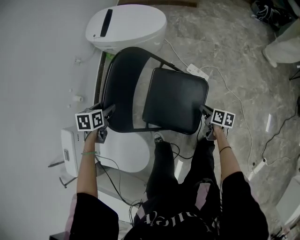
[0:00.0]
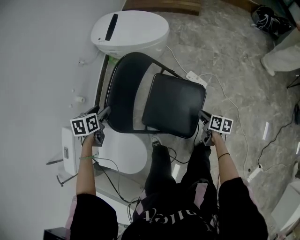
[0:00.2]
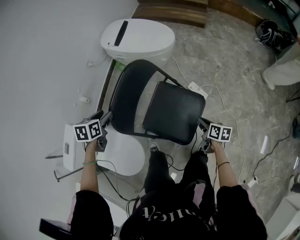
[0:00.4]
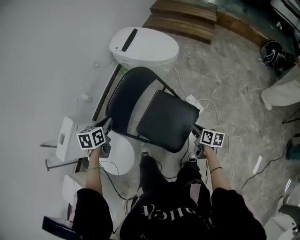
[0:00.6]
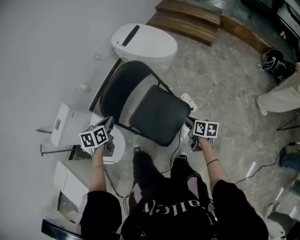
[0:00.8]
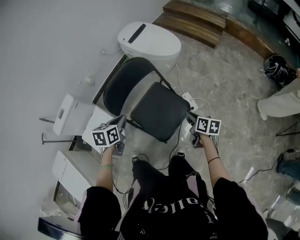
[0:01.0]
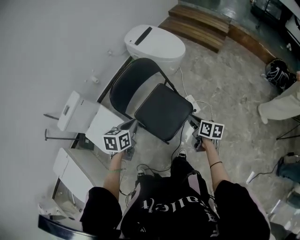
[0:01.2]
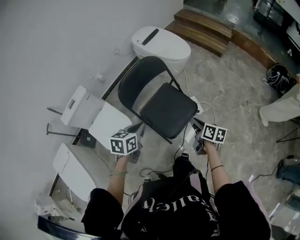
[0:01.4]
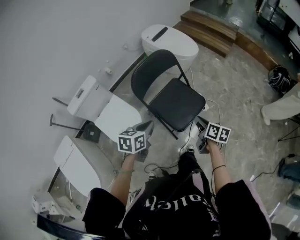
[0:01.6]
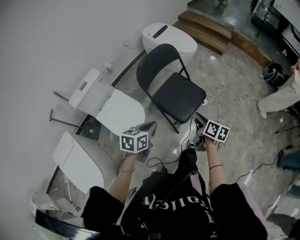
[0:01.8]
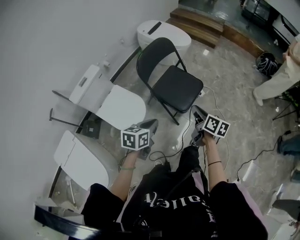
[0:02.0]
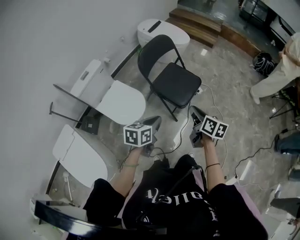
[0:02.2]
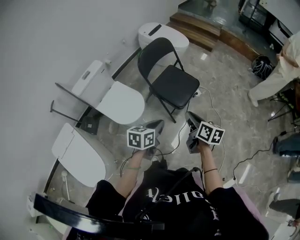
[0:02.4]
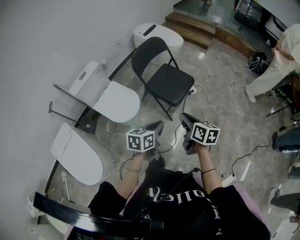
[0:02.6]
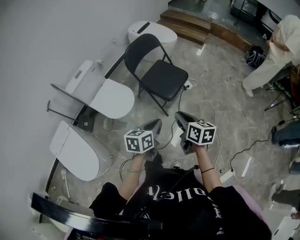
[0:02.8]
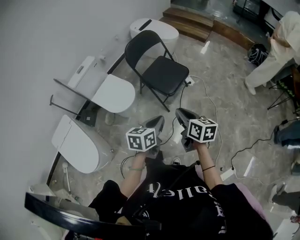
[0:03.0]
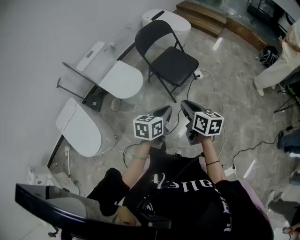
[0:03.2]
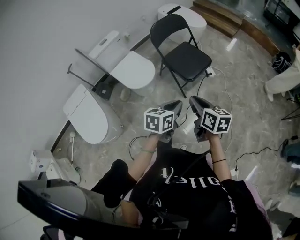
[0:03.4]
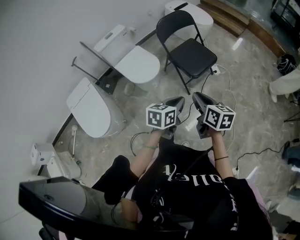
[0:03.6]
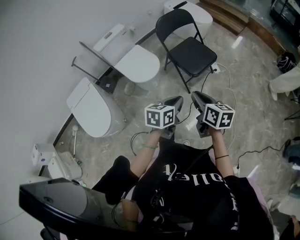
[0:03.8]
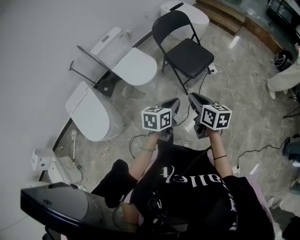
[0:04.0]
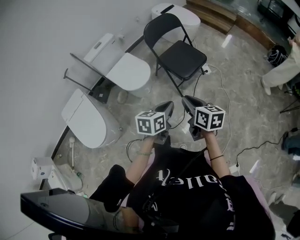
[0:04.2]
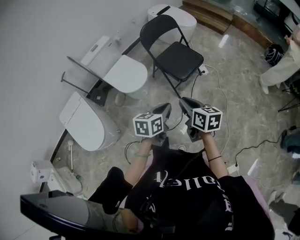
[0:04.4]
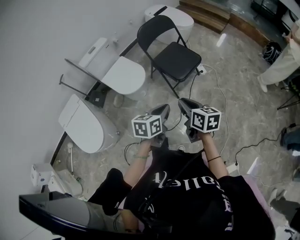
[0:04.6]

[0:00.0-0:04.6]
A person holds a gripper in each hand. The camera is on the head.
0:00.0 to 0:01.6: The left gripper shifts approximately 40 cm backward and upward, changes its angle by roughly 30 degrees, and closes its fingers. The right gripper travels upward and backward by approximately 30 cm, and changes its angle by some 30 degrees.
0:01.6 to 0:03.0: Both grippers move backward, about 35 cm.
0:03.0 to 0:04.6: There are only small adjustments of the grippers.

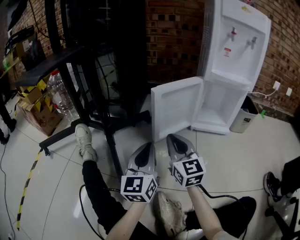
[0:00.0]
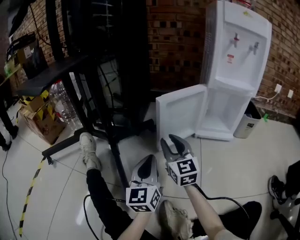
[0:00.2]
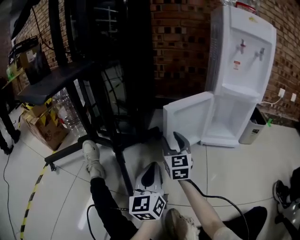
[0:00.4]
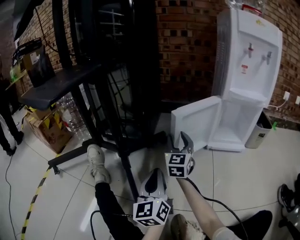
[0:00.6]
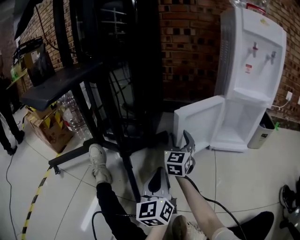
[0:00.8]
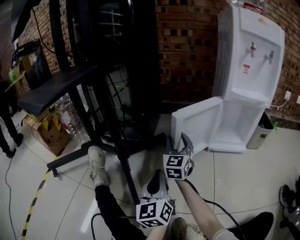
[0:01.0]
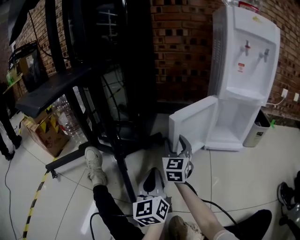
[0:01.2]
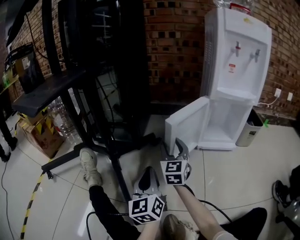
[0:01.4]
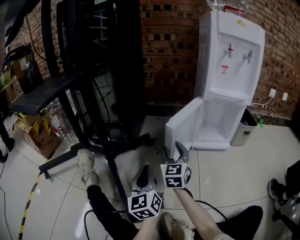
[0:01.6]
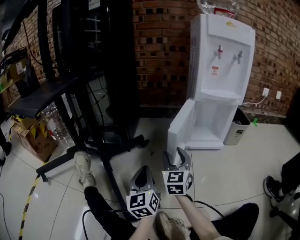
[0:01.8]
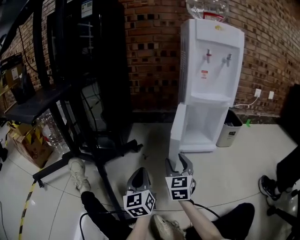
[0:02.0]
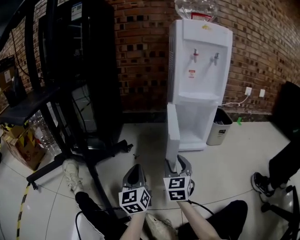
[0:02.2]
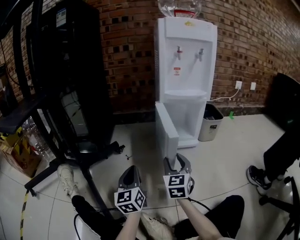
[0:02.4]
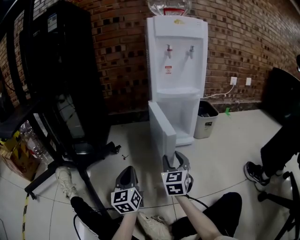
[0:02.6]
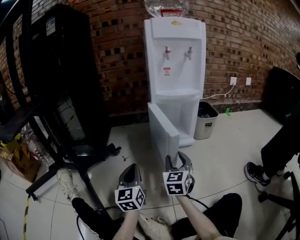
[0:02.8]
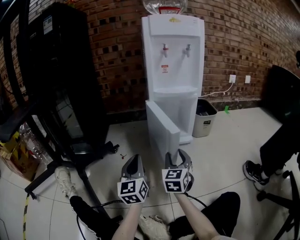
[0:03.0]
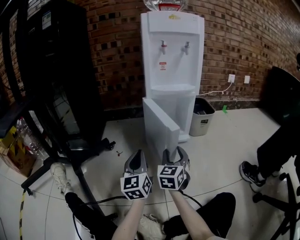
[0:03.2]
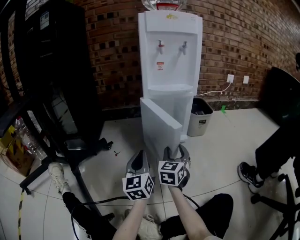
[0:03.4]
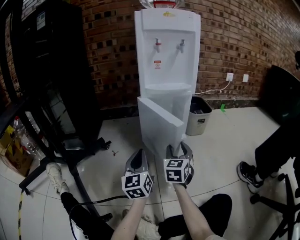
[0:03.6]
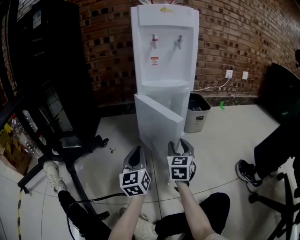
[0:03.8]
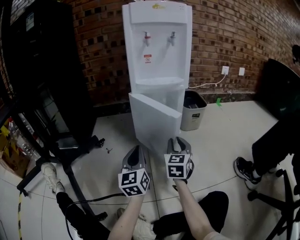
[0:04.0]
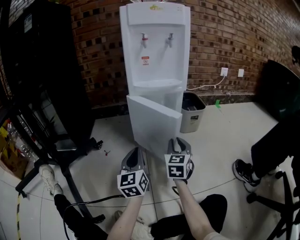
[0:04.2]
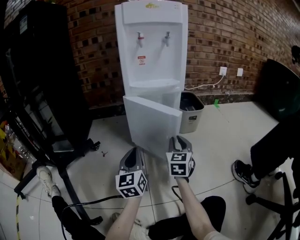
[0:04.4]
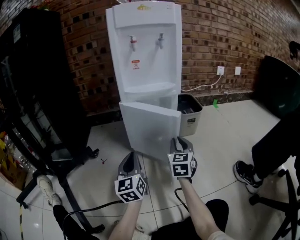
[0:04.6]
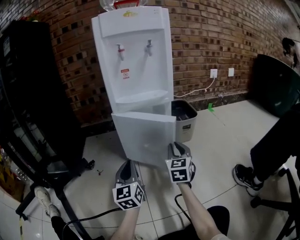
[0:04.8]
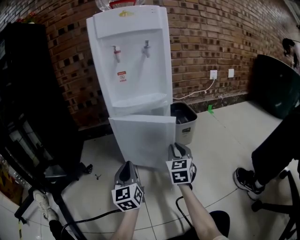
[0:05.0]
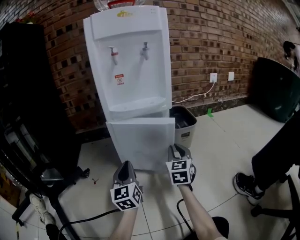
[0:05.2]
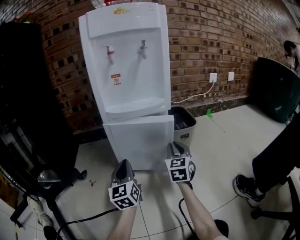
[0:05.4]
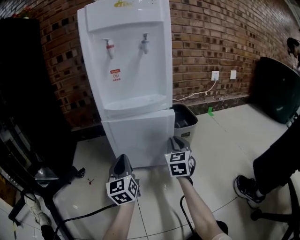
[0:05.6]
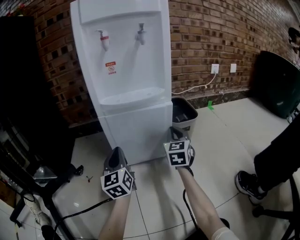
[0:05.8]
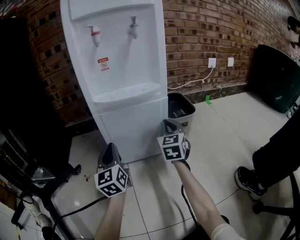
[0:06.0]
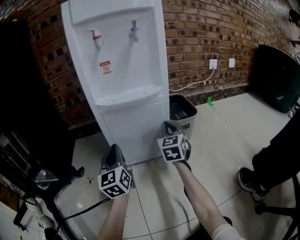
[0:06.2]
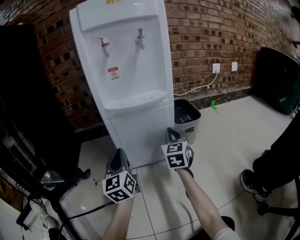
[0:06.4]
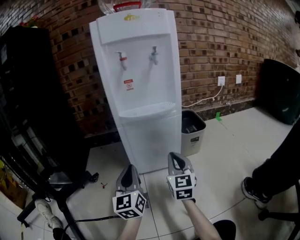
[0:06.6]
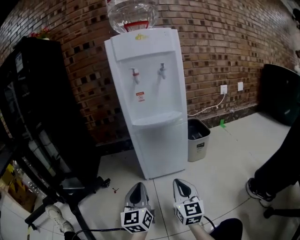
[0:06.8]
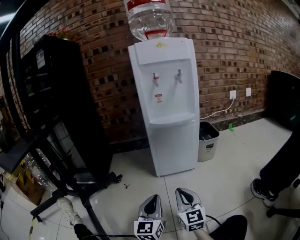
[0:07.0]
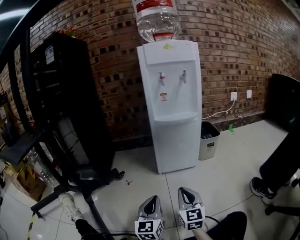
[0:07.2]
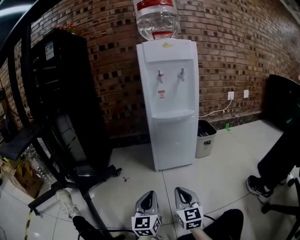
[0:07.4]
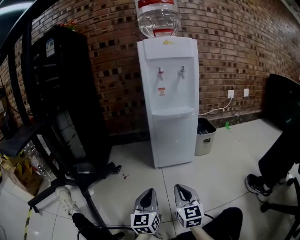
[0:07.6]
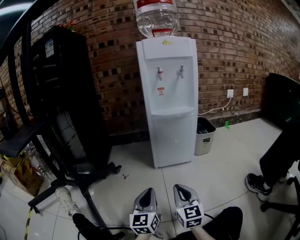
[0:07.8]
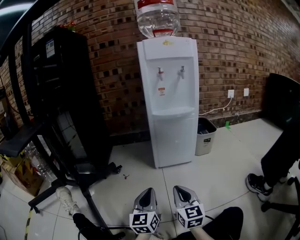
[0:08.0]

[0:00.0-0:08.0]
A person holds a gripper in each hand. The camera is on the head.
0:00.0 to 0:01.6: The right gripper heads forward, covering roughly 10 cm, rotates approximately 20 degrees, and opens its fingers. The left gripper moves roughly 5 cm.
0:01.6 to 0:03.2: Both grippers move to the right, roughly 20 cm. The left gripper swivels some 20 degrees. Meanwhile the right gripper turns by about 30 degrees.
0:03.2 to 0:04.8: The left gripper moves forward and to the right, some 10 cm. The right gripper is displaced to the right and forward by approximately 15 cm, and closes up.
0:04.8 to 0:06.4: Both grippers move forward, roughly 10 cm.
0:06.4 to 0:08.0: The right gripper is displaced backward and to the left by roughly 35 cm, and swivels about 20 degrees; the left gripper heads backward, covering some 25 cm.

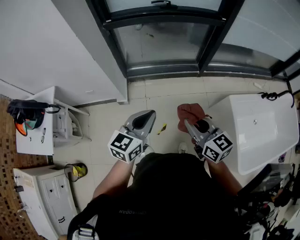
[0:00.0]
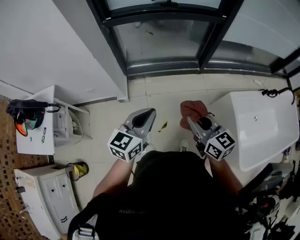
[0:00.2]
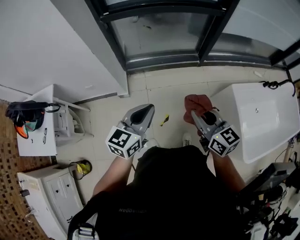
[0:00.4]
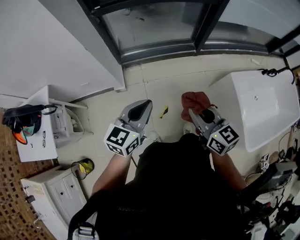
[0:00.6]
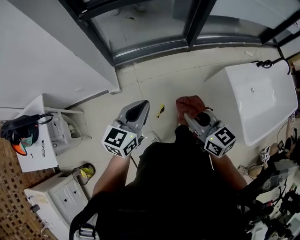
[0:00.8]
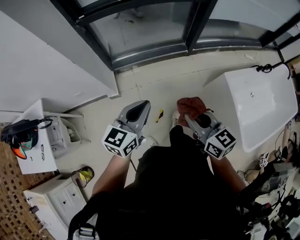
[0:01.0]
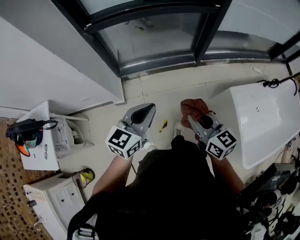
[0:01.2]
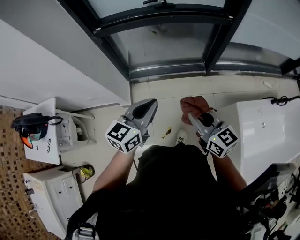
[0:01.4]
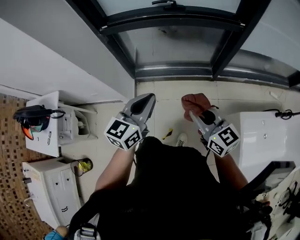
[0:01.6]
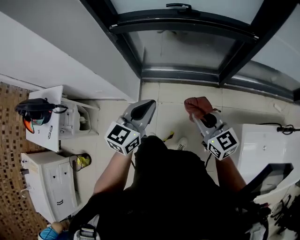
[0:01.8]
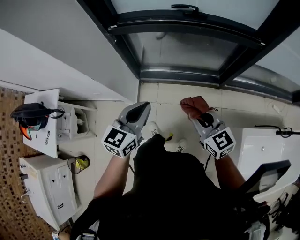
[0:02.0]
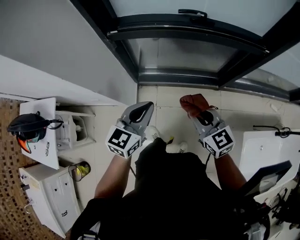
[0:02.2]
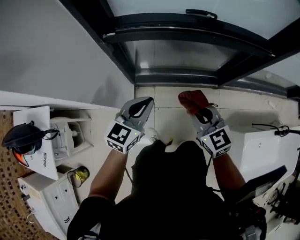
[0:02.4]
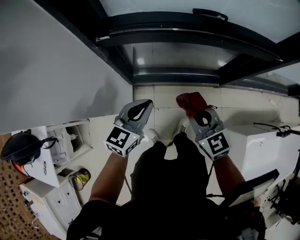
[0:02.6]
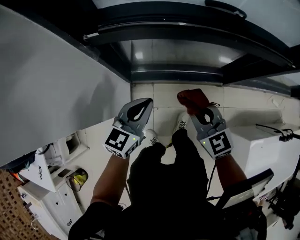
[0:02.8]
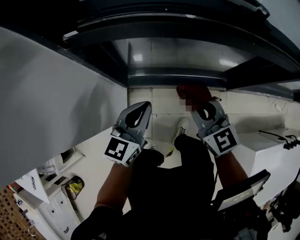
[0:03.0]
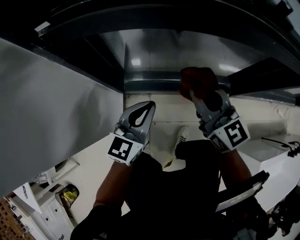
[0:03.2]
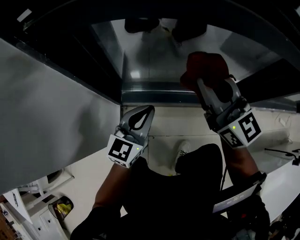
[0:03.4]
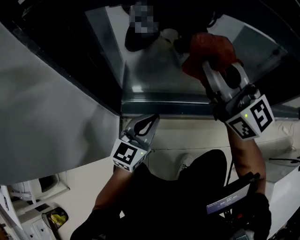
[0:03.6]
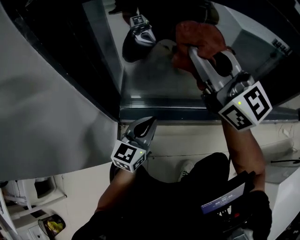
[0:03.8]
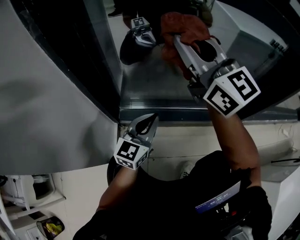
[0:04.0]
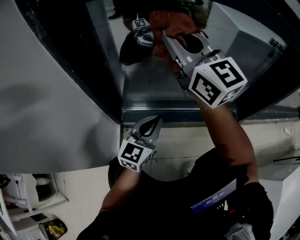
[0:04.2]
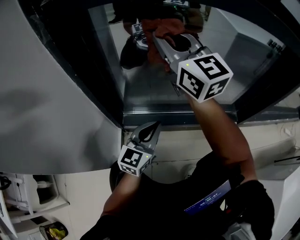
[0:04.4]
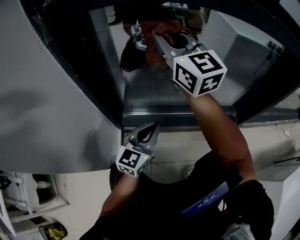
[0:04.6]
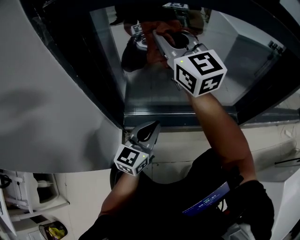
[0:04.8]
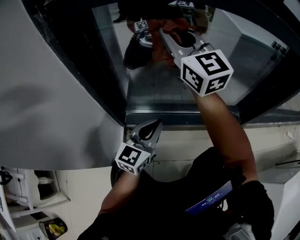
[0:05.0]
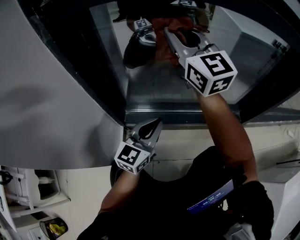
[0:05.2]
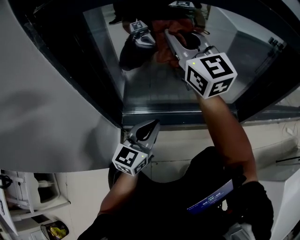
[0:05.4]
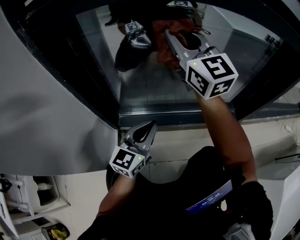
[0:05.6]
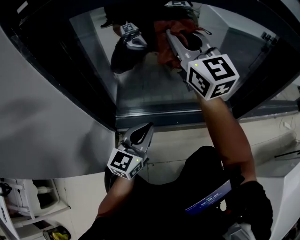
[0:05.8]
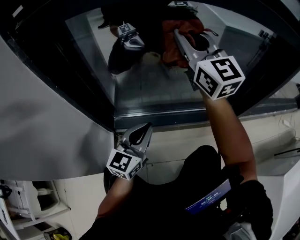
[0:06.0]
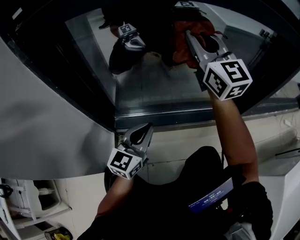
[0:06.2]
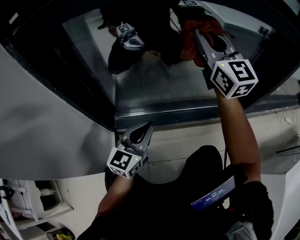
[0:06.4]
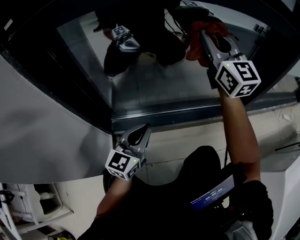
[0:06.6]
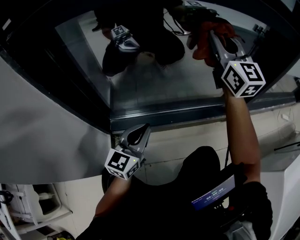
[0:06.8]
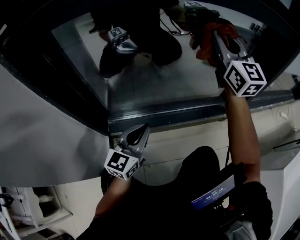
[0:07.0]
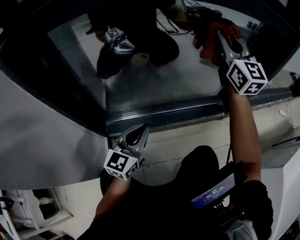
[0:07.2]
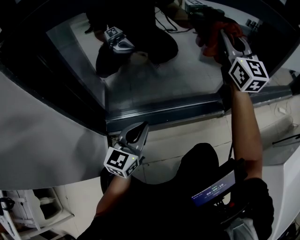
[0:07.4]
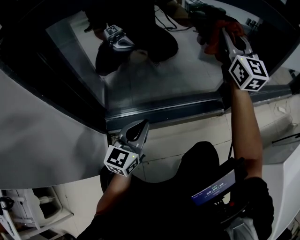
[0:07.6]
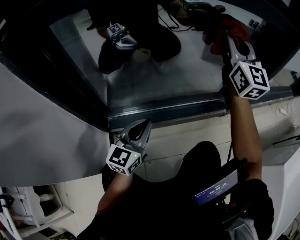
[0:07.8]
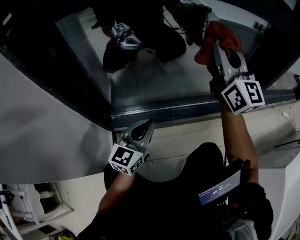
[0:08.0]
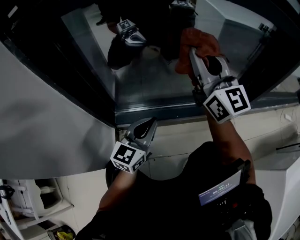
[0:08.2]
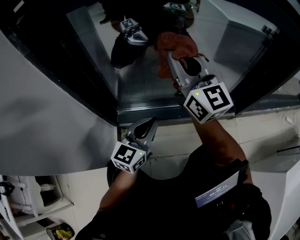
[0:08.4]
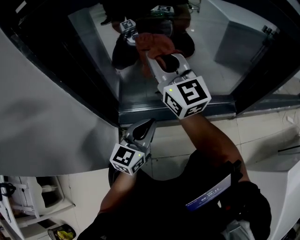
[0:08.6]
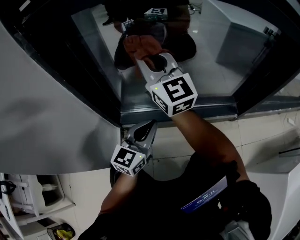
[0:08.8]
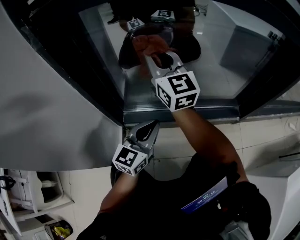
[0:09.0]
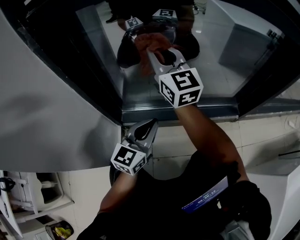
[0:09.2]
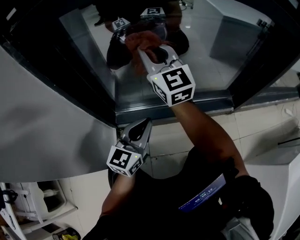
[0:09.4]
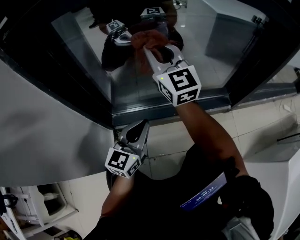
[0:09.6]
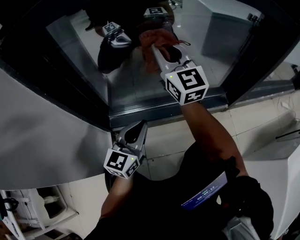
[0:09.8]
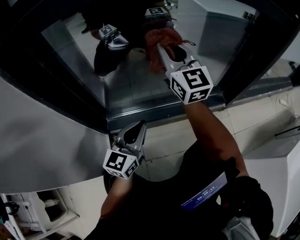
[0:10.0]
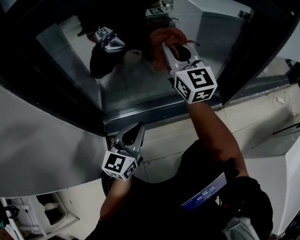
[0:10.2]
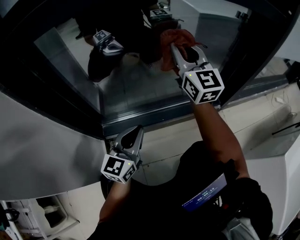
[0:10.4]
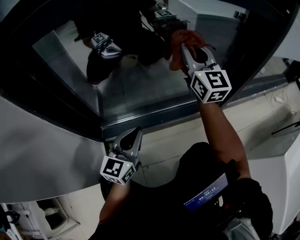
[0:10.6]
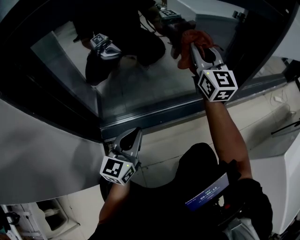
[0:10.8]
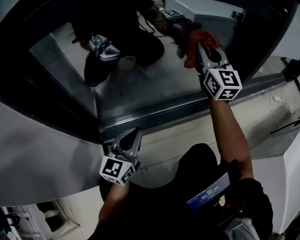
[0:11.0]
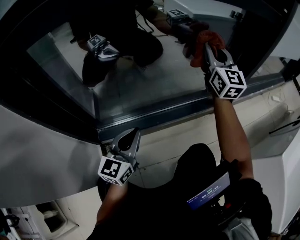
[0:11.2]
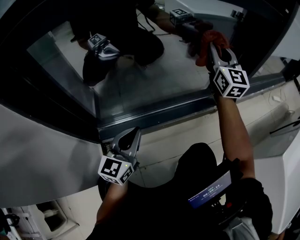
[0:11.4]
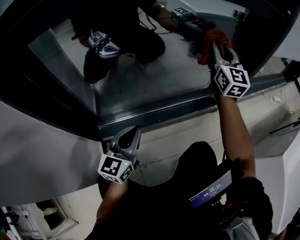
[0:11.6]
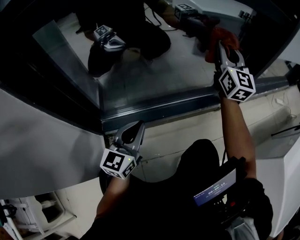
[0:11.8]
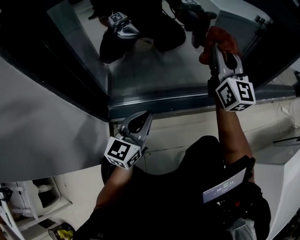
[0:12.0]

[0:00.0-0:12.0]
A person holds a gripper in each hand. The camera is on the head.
0:00.0 to 0:01.6: The grippers both shift forward by about 20 cm.
0:01.6 to 0:03.0: Both grippers move forward and downward, roughly 40 cm.
0:03.0 to 0:04.4: The right gripper is displaced forward and to the left by some 20 cm, and swivels some 30 degrees; the left gripper heads downward, covering about 25 cm.
0:04.4 to 0:06.0: The right gripper is displaced to the right by about 15 cm.
0:06.0 to 0:07.6: The right gripper heads to the right, covering about 20 cm, and turns by roughly 20 degrees.
0:07.6 to 0:09.0: The right gripper heads to the left, covering approximately 35 cm, and changes its angle by some 30 degrees.
0:09.0 to 0:10.4: The right gripper travels to the right by approximately 20 cm.
0:10.4 to 0:12.0: The right gripper travels to the right by some 5 cm.
